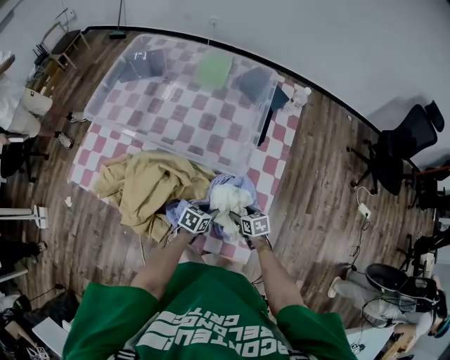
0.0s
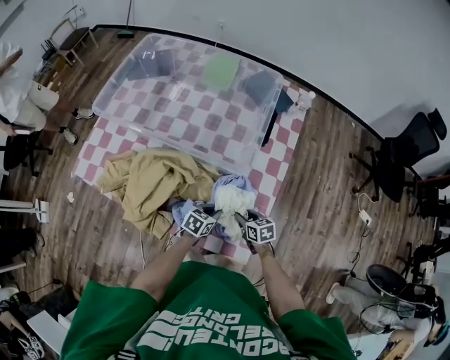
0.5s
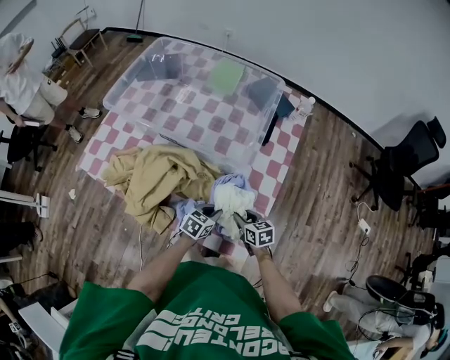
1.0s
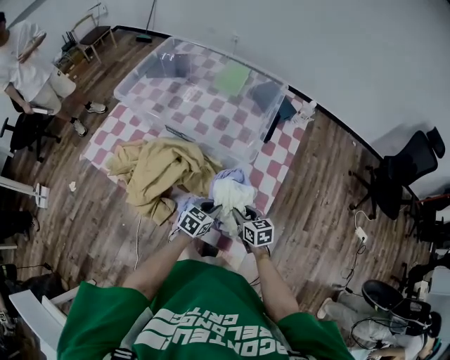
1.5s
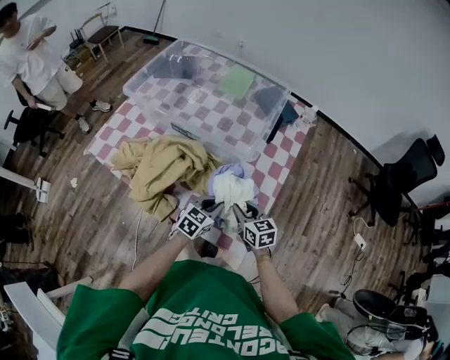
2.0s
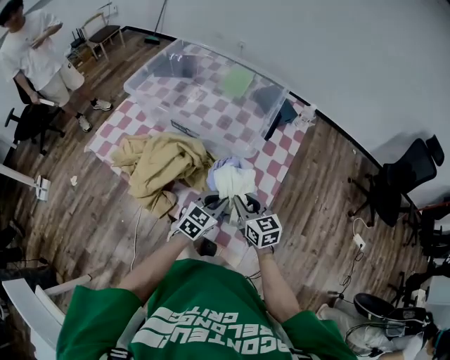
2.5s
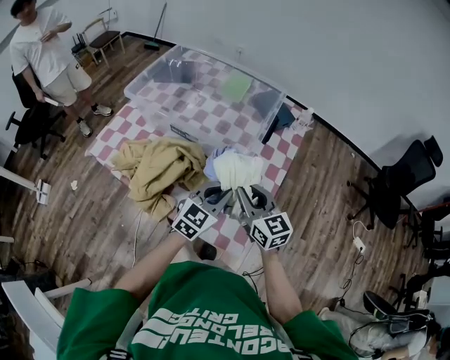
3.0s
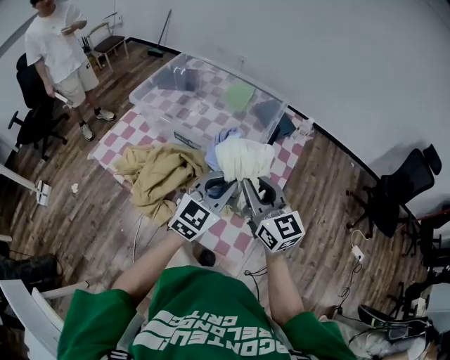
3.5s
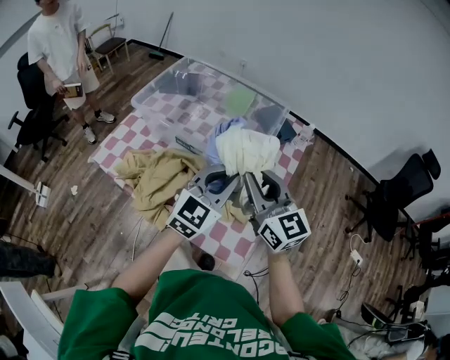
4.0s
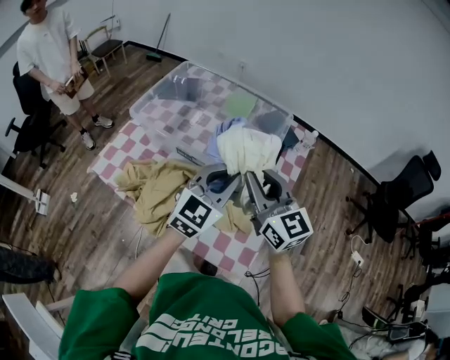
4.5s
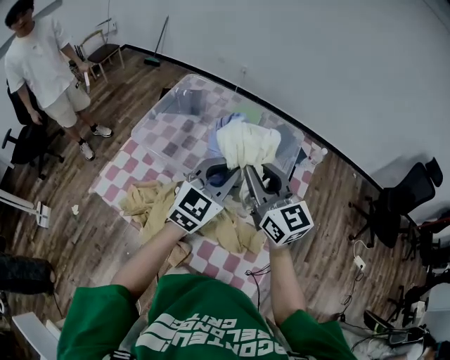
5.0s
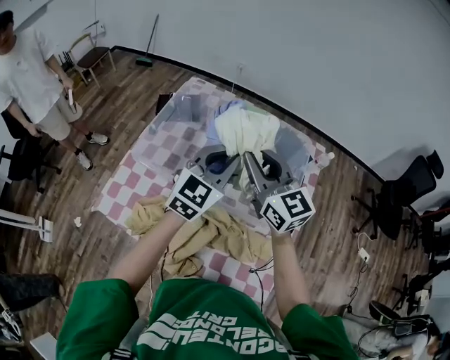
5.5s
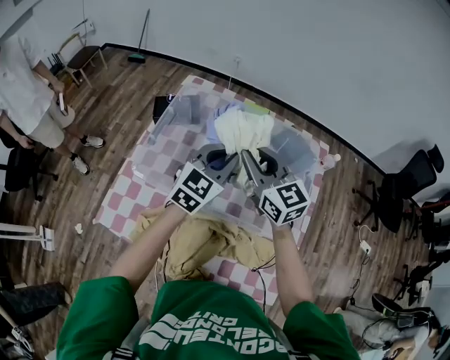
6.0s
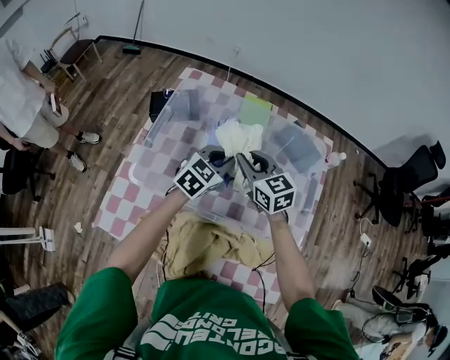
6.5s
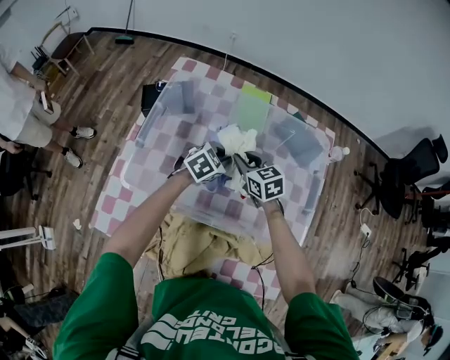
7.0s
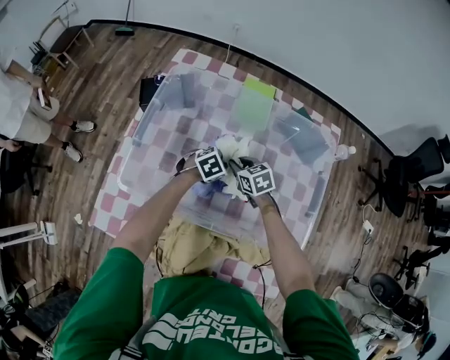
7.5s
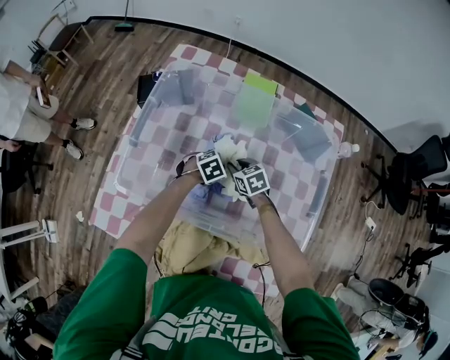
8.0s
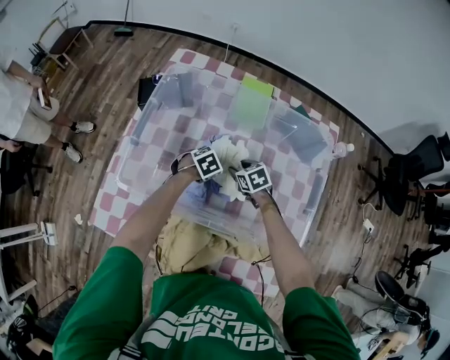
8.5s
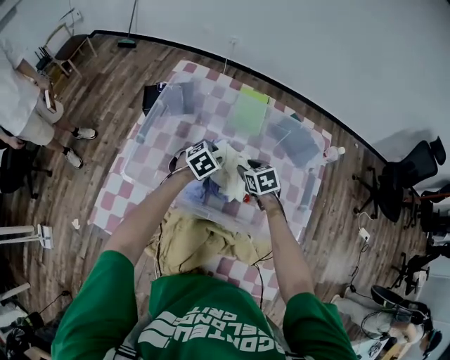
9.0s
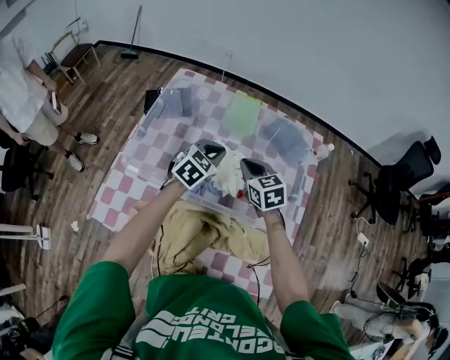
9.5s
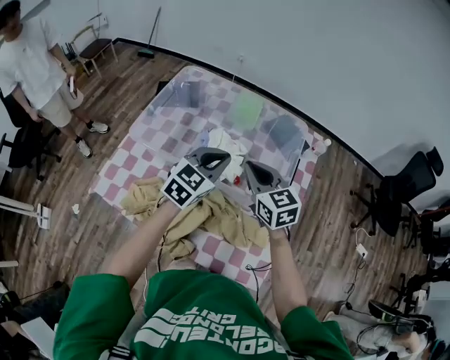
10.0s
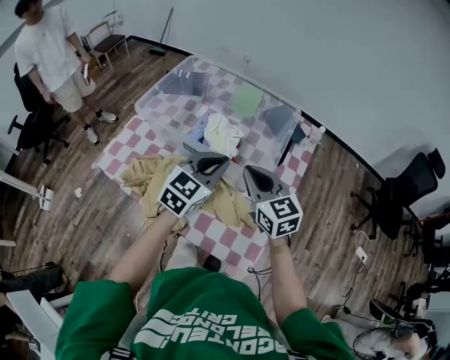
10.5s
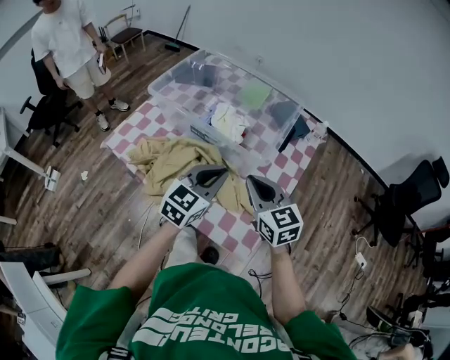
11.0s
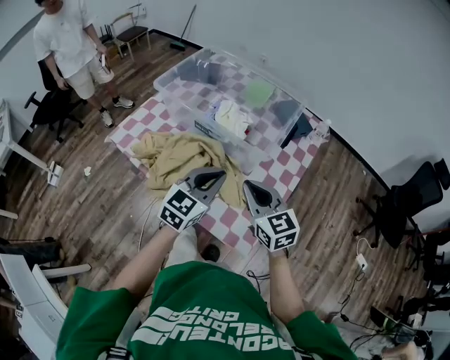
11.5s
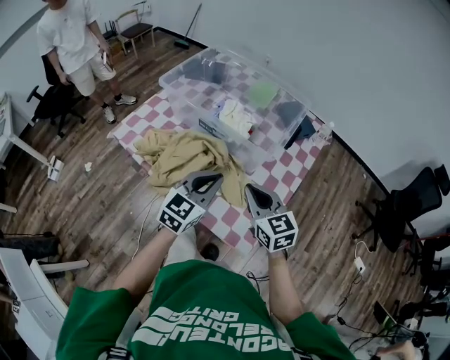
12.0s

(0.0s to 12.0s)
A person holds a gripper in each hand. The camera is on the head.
0.0s - 2.0s: The two grippers go approximately 15 cm upward. The left gripper rotates roughly 30 degrees. The right gripper turns by roughly 30 degrees, and closes up.
2.0s - 4.0s: The two grippers go roughly 30 cm upward. The left gripper turns by some 30 degrees, while the right gripper tilts its fingers roughly 30 degrees upward.
4.0s - 6.0s: Both grippers travel together forward and to the left, about 35 cm.
6.0s - 8.0s: The two grippers go some 35 cm downward. The right gripper tilts its fingers approximately 40 degrees downward. Meanwhile the left gripper tips its fingers downward by about 50 degrees.
8.0s - 10.0s: Both grippers move upward, approximately 35 cm. The right gripper points its fingers about 30 degrees further upward. Meanwhile the left gripper tilts its fingers roughly 40 degrees upward.
10.0s - 12.0s: Both grippers move backward, roughly 25 cm.

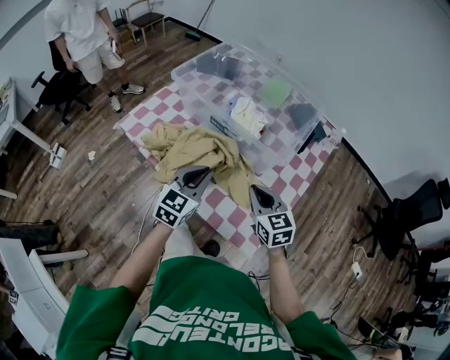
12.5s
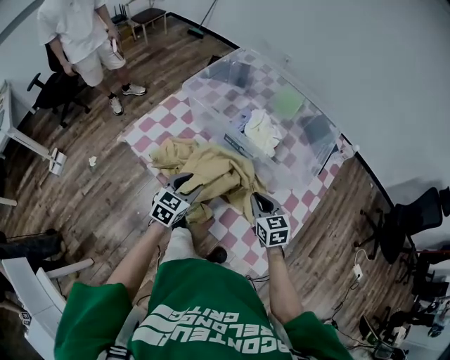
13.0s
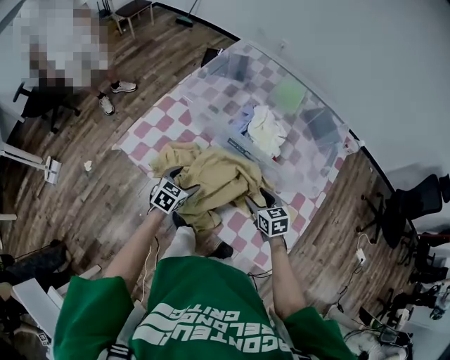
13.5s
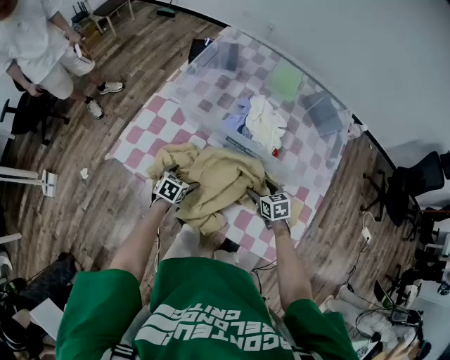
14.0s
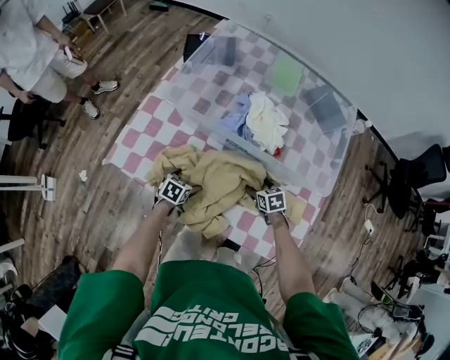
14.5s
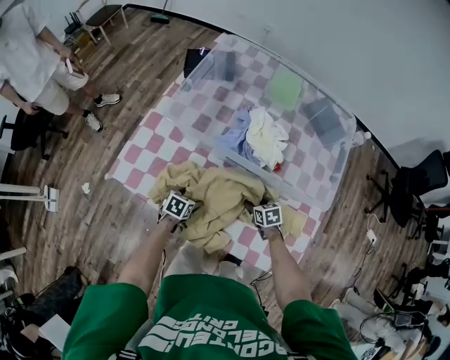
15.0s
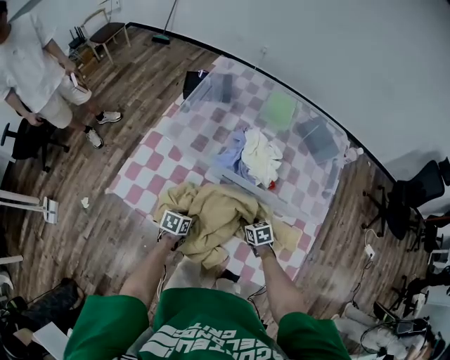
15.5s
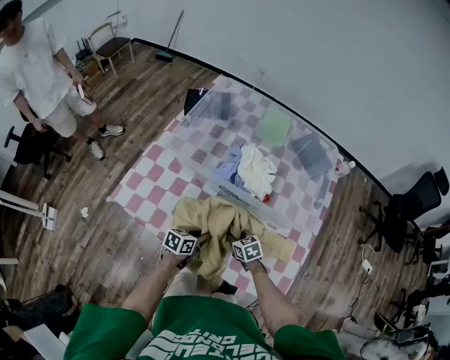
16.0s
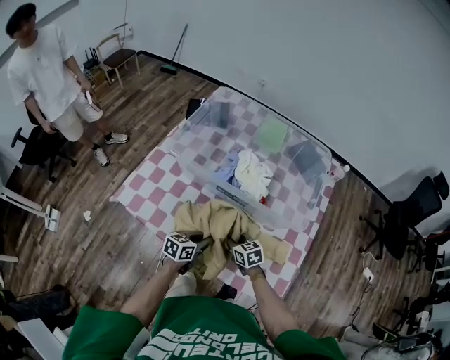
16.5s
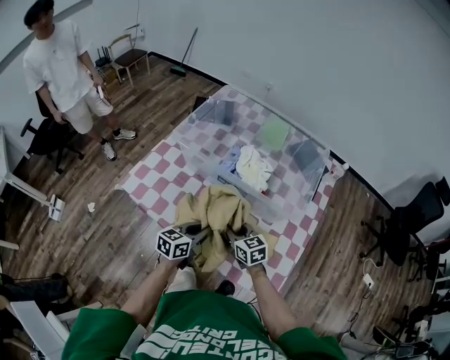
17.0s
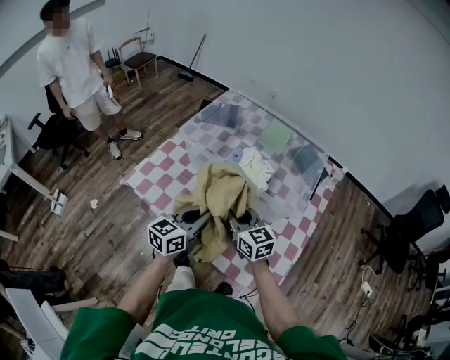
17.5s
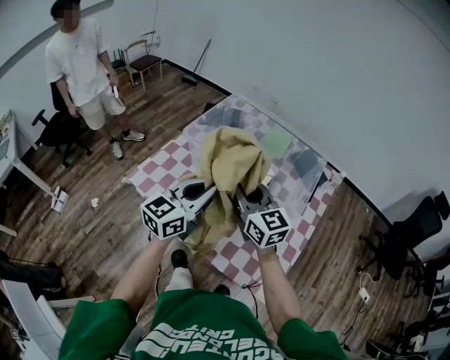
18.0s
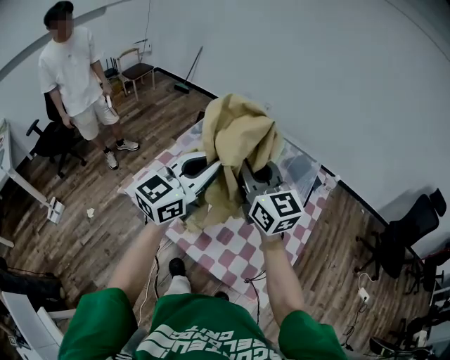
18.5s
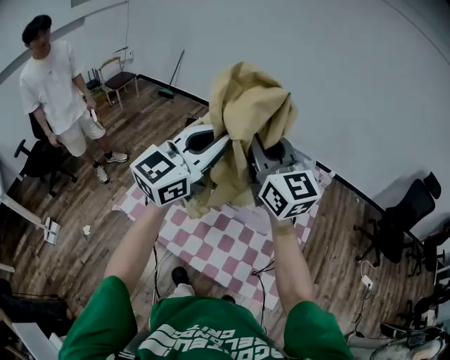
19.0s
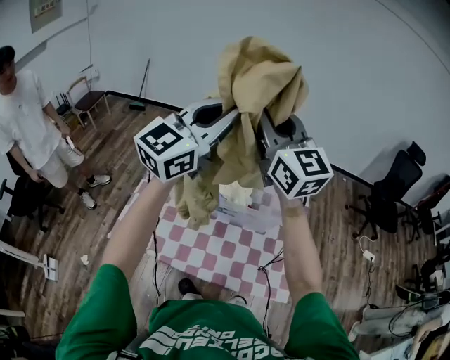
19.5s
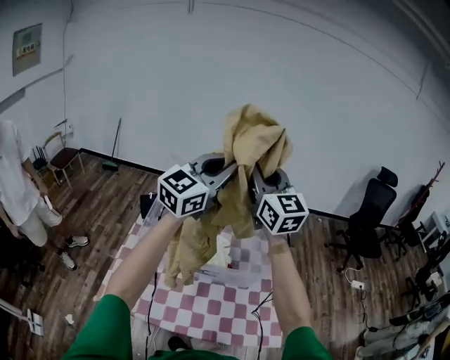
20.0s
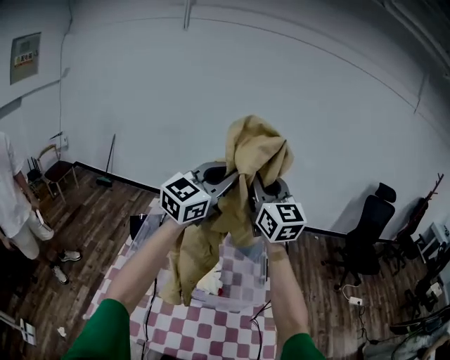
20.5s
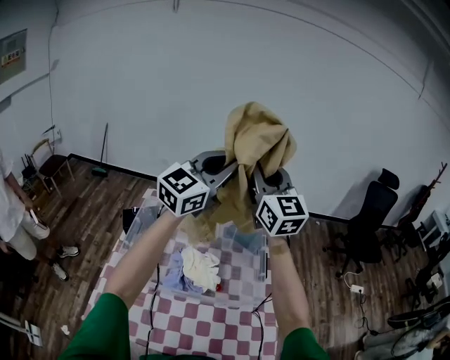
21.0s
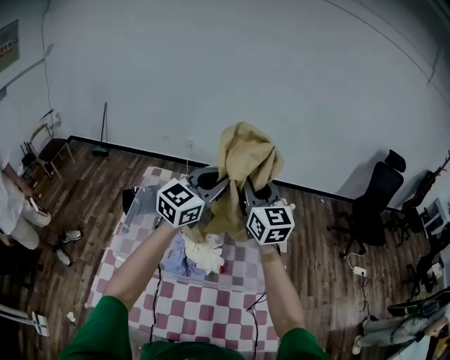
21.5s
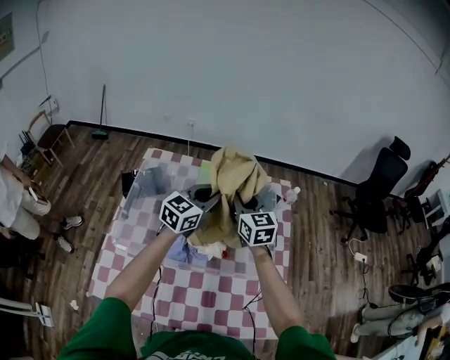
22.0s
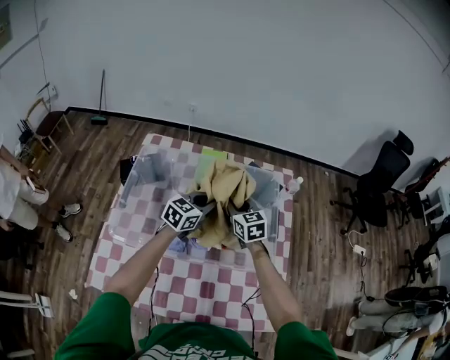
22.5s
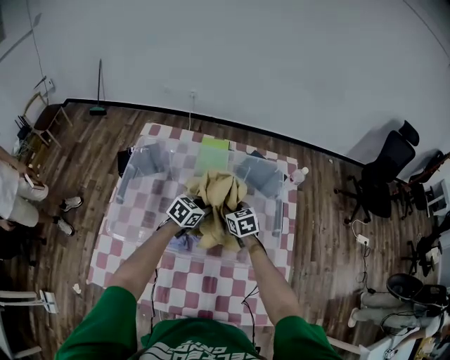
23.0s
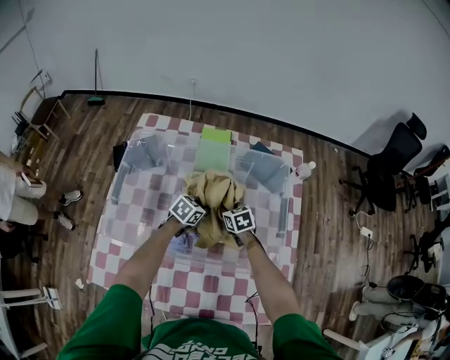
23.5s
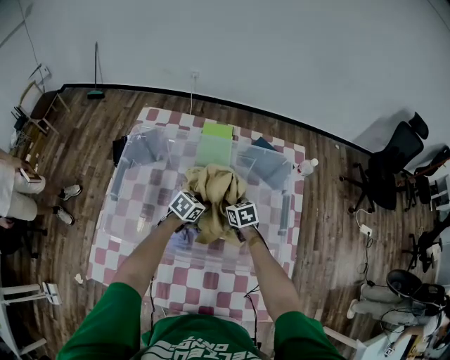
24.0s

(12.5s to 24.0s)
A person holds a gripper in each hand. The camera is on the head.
12.5s - 14.5s: The right gripper travels downward and forward by some 35 cm, angles its fingers downward, by about 30 degrees, and opens up; the left gripper goes approximately 40 cm downward, to the left and forward, angles its fingers downward, by about 40 degrees, and opens up.
14.5s - 16.5s: The right gripper moves upward, to the left and backward, roughly 15 cm, swivels about 20 degrees, and closes. Meanwhile the left gripper goes roughly 20 cm upward and to the right, rotates approximately 30 degrees, and closes.
16.5s - 18.5s: Both grippers move upward, approximately 50 cm. The left gripper tilts its fingers roughly 40 degrees upward, while the right gripper tilts its fingers about 50 degrees upward.
18.5s - 20.0s: The left gripper moves about 25 cm, and rotates about 30 degrees. The right gripper moves roughly 25 cm, and swivels some 30 degrees.
20.0s - 22.0s: Both grippers travel together downward and forward, about 30 cm. The left gripper rotates roughly 30 degrees. The right gripper swivels approximately 30 degrees.
22.0s - 24.0s: The two grippers go some 30 cm downward. The right gripper points its fingers roughly 40 degrees further downward. Meanwhile the left gripper tilts its fingers some 40 degrees downward.

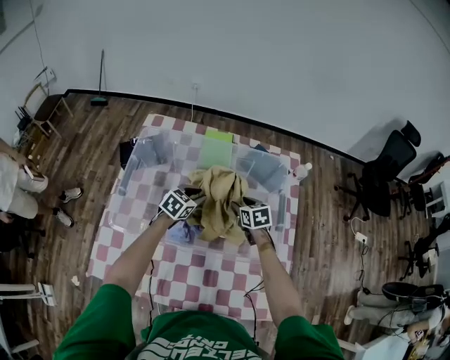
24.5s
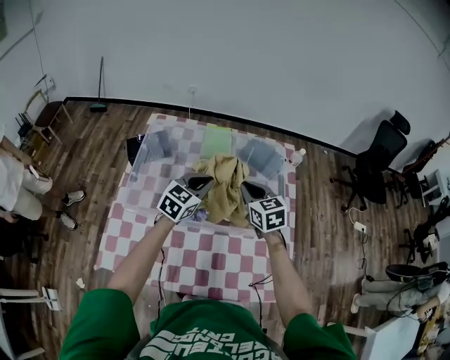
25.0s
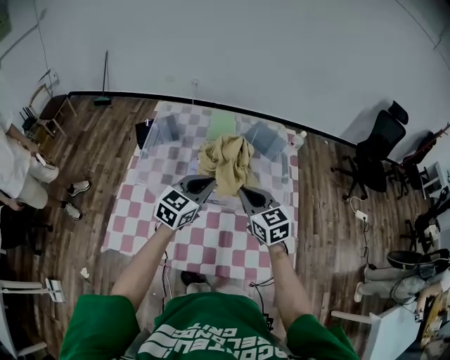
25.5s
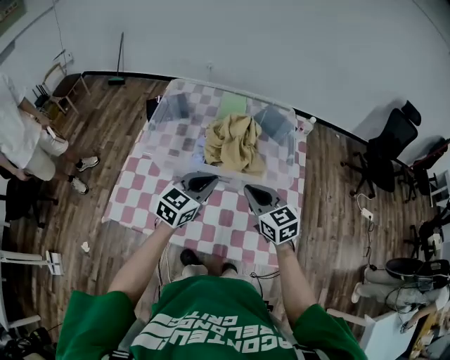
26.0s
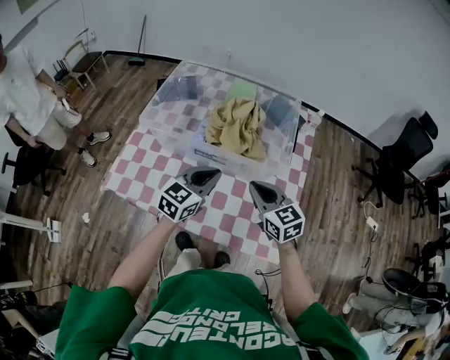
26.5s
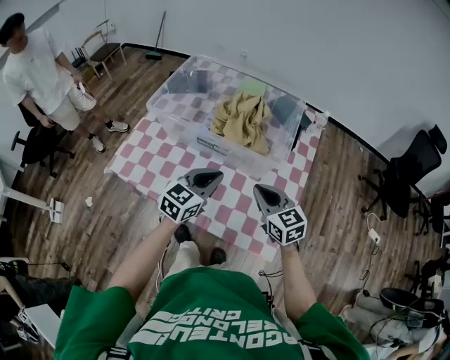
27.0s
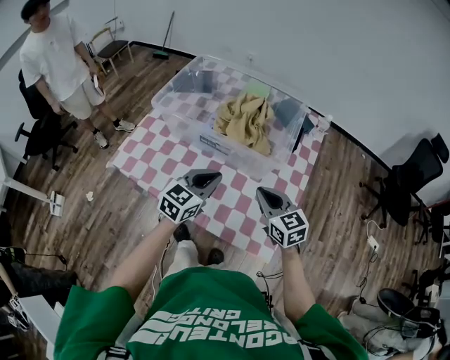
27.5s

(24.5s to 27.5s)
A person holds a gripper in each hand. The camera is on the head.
24.5s - 26.0s: Both grippers move backward and upward, some 35 cm. The right gripper swivels about 30 degrees, and closes its fingers, while the left gripper turns by about 20 degrees.
26.0s - 27.5s: The right gripper goes some 15 cm to the right and backward. The left gripper goes about 15 cm backward and to the right.
